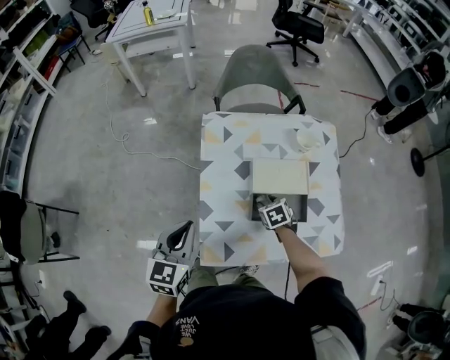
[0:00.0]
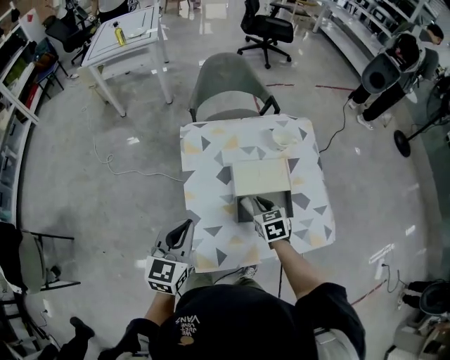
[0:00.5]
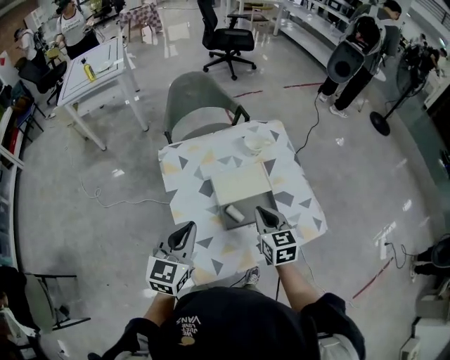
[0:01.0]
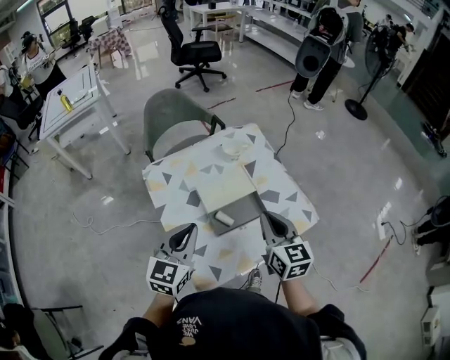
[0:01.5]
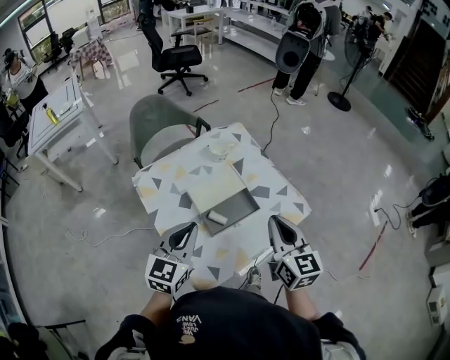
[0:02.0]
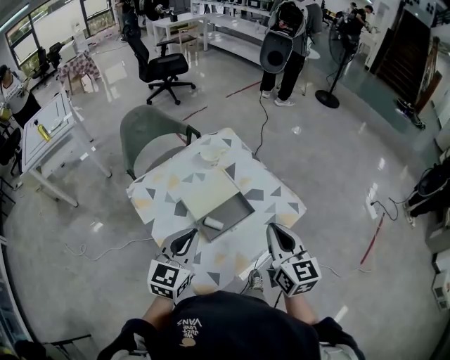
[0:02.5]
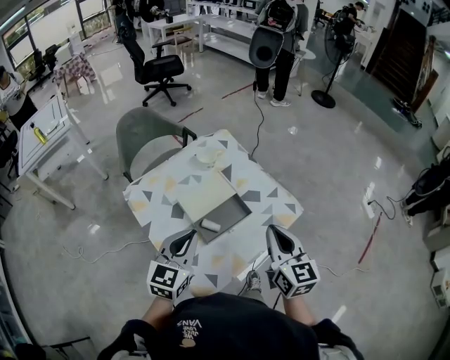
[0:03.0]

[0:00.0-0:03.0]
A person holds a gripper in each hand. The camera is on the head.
0.0 to 1.5 s: The right gripper heads upward, covering about 30 cm, tips its fingers upward by roughly 50 degrees, and closes; the left gripper moves approximately 15 cm, and rotates approximately 30 degrees.
1.5 to 3.0 s: The right gripper travels backward and to the right by approximately 10 cm.

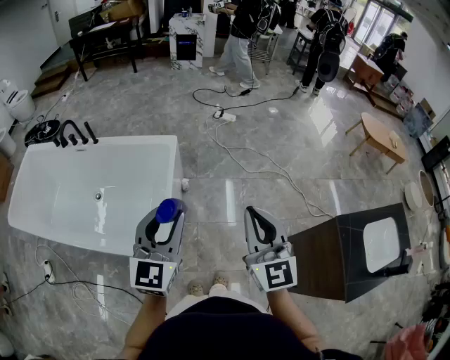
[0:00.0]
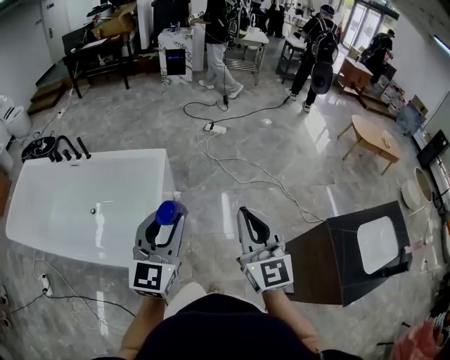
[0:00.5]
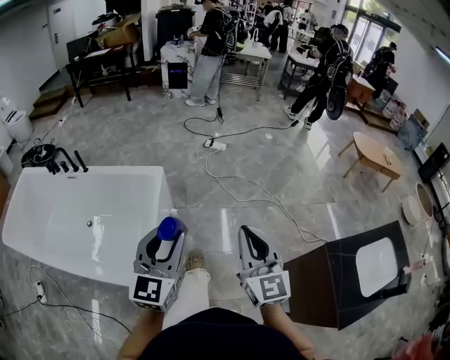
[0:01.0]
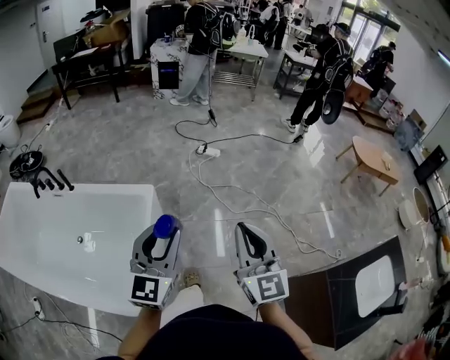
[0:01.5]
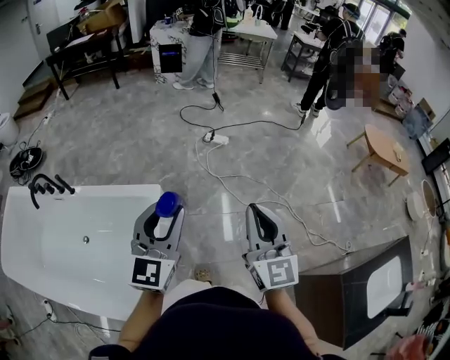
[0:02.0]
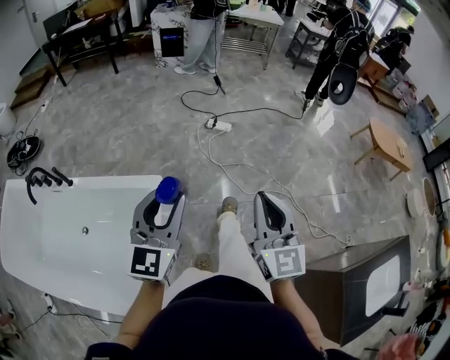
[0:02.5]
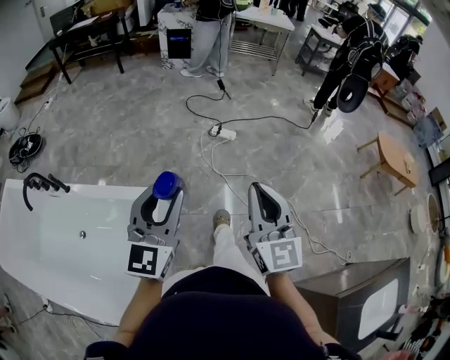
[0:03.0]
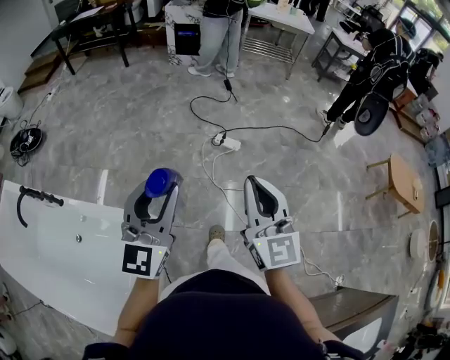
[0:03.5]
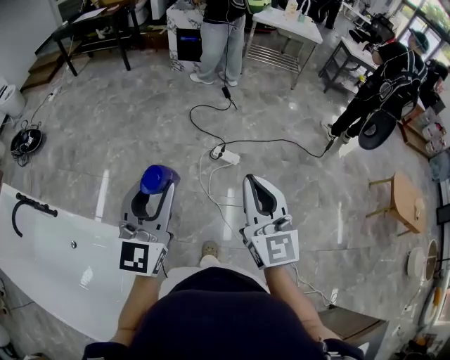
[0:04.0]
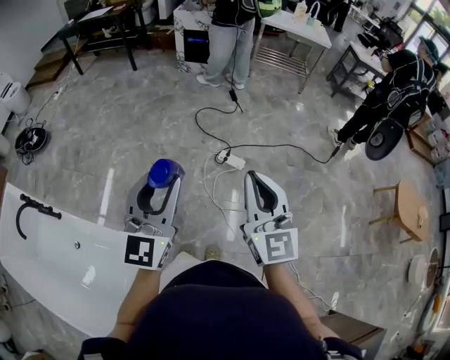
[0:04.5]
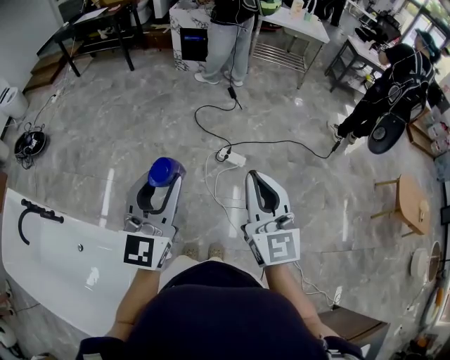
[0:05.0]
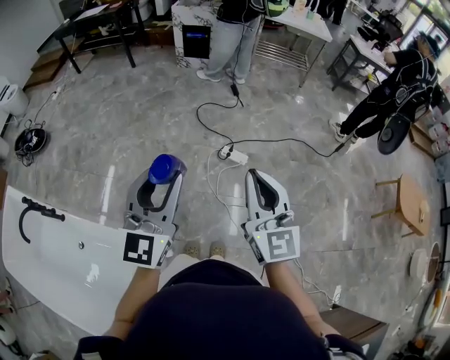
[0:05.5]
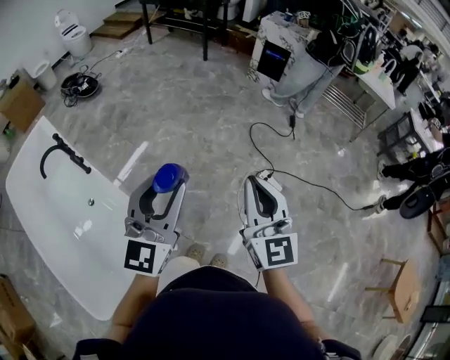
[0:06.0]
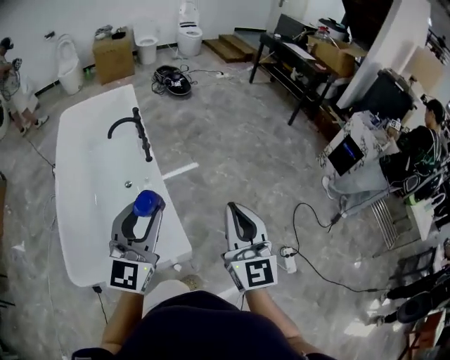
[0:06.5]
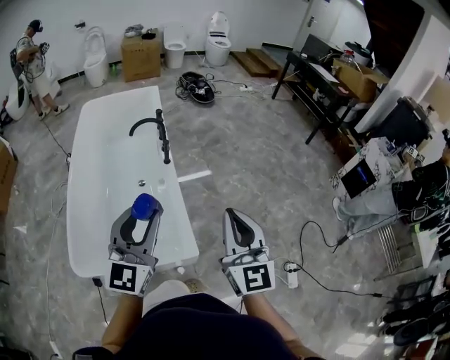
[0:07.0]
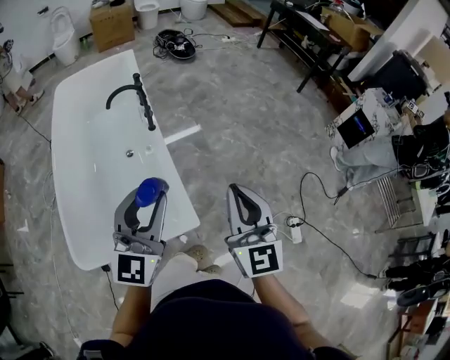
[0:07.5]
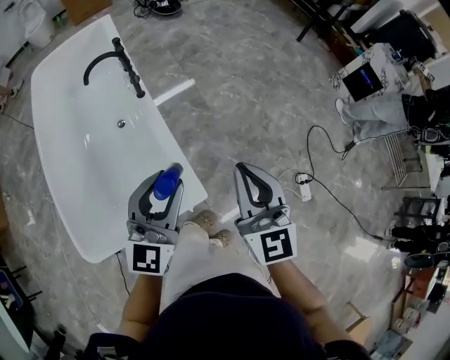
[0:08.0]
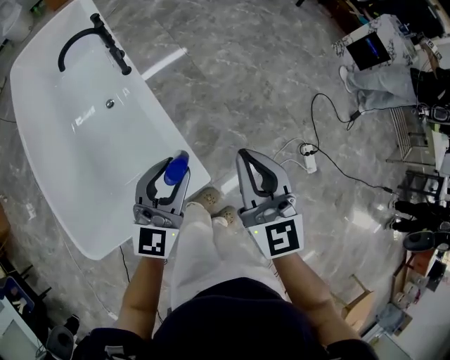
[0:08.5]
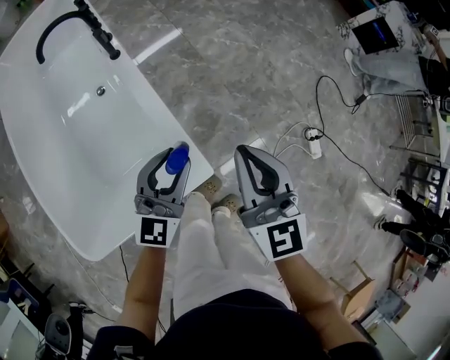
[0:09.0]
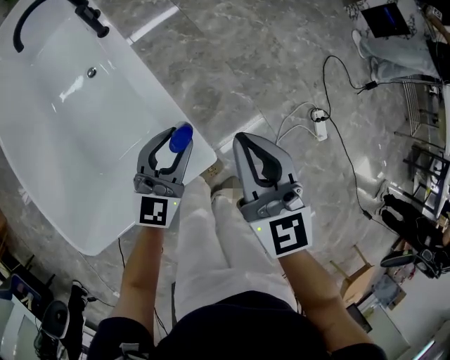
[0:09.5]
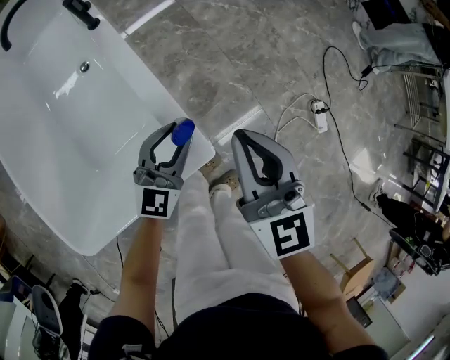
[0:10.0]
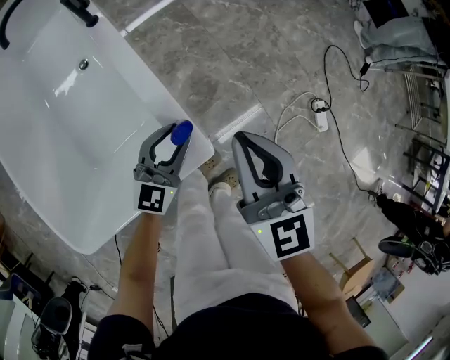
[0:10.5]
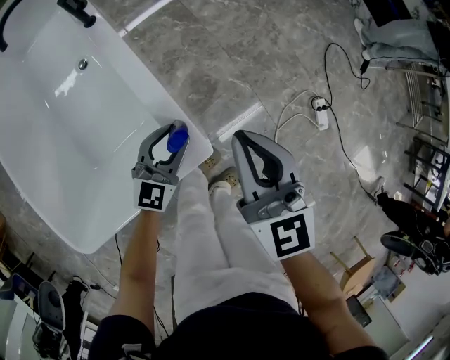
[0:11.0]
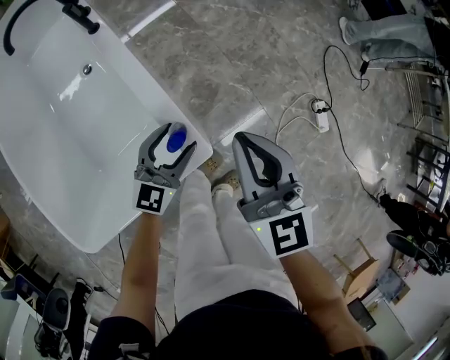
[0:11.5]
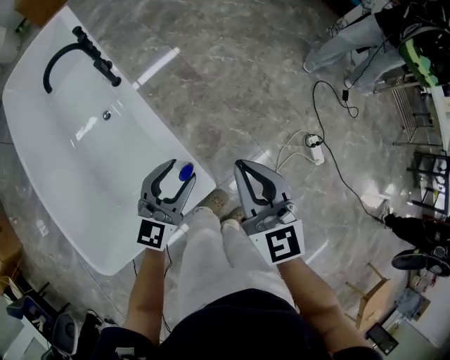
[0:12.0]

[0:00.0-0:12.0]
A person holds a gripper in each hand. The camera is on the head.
0.0 to 2.0 s: Both grippers move forward, approximately 35 cm.
2.0 to 4.0 s: The two grippers travel together, forward, roughly 50 cm.
4.0 to 6.0 s: The right gripper shifts approximately 20 cm to the left and forward, and rotates approximately 20 degrees. The left gripper heads to the left, covering roughly 15 cm.
6.0 to 8.0 s: The right gripper shifts by some 35 cm, and changes its angle by approximately 40 degrees. The left gripper changes place by some 30 cm, and turns by about 30 degrees.
8.0 to 10.0 s: The left gripper heads downward, covering approximately 35 cm, and swivels about 20 degrees. Meanwhile the right gripper moves downward, about 20 cm.
10.0 to 12.0 s: The right gripper is displaced upward by some 10 cm, while the left gripper heads upward, covering some 15 cm.

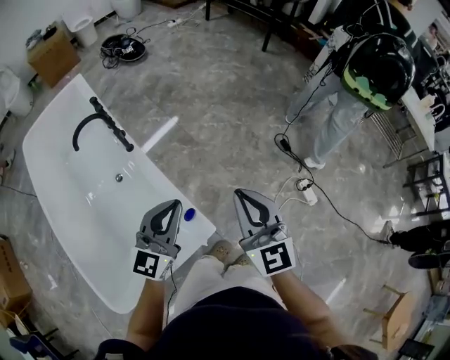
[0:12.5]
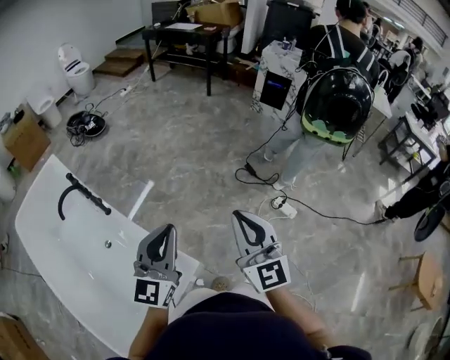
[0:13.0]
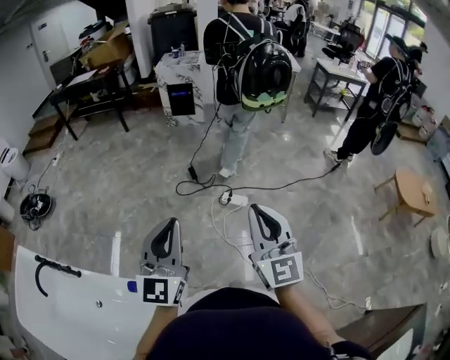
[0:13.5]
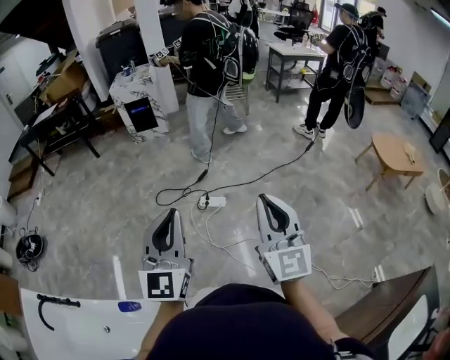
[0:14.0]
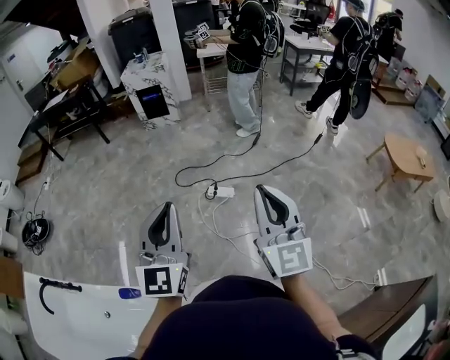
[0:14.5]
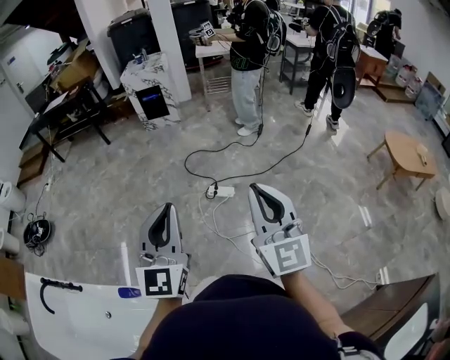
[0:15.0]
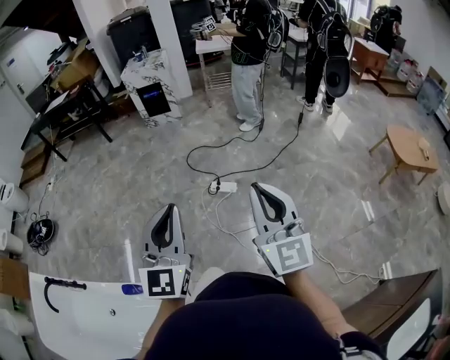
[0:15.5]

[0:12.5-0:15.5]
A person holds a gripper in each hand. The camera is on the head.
12.5 to 14.0 s: The two grippers travel together, roughly 50 cm. The left gripper rotates roughly 40 degrees; the right gripper changes its angle by roughly 70 degrees.
14.0 to 15.5 s: The grippers move only a little.

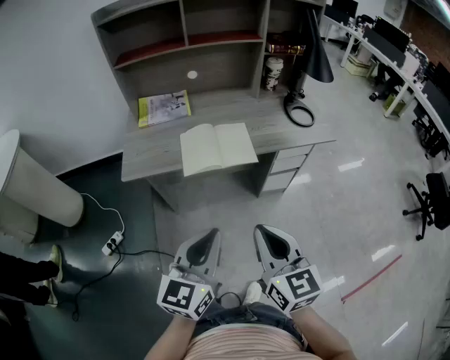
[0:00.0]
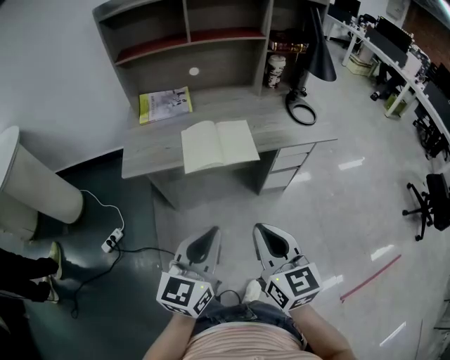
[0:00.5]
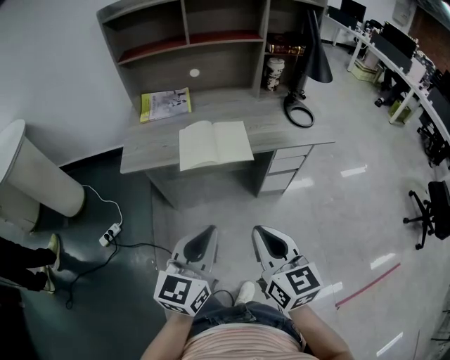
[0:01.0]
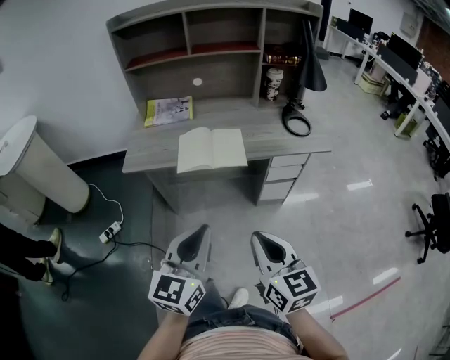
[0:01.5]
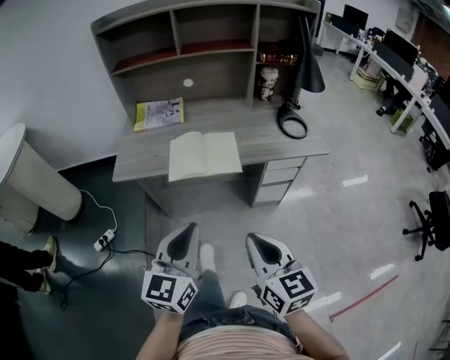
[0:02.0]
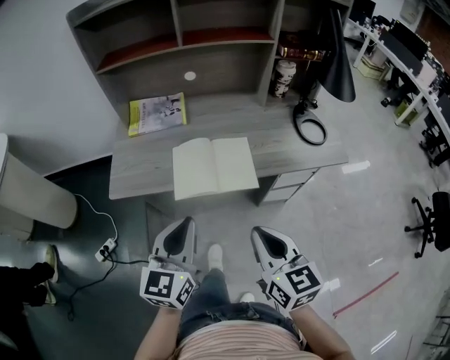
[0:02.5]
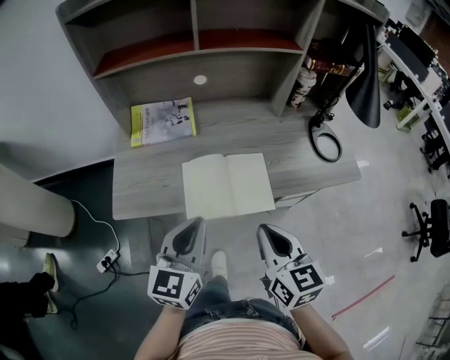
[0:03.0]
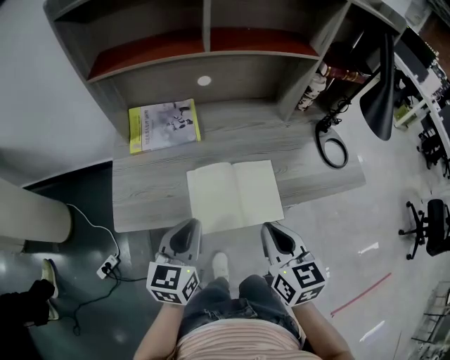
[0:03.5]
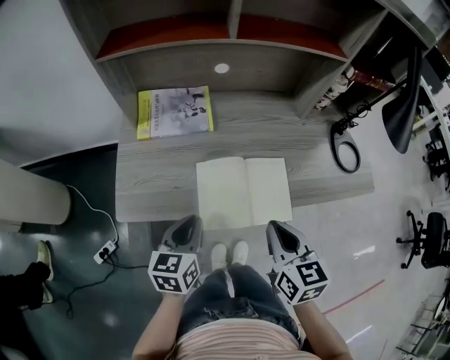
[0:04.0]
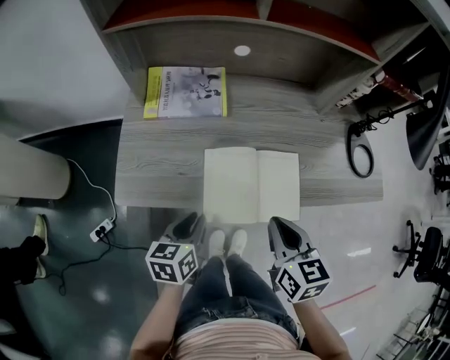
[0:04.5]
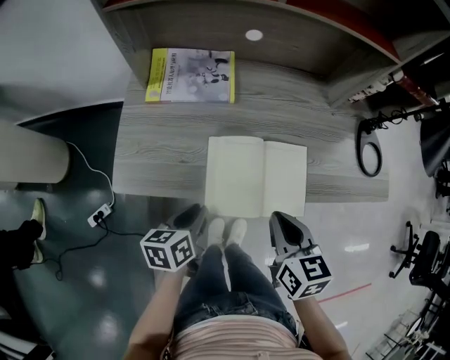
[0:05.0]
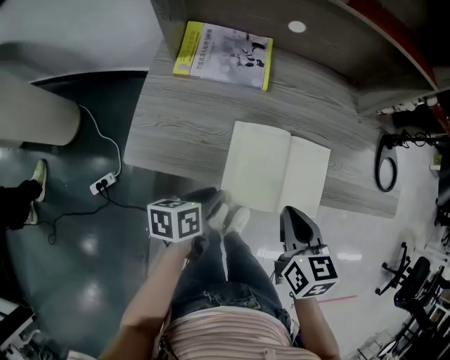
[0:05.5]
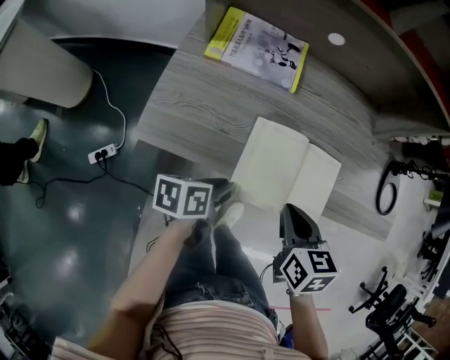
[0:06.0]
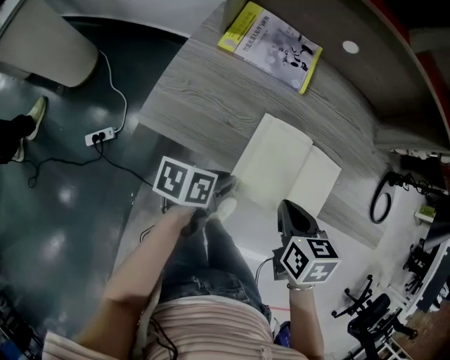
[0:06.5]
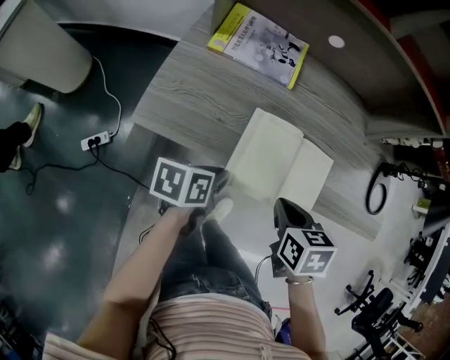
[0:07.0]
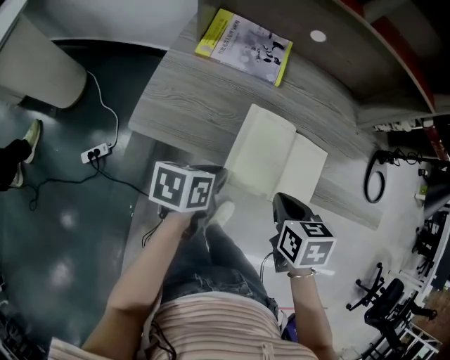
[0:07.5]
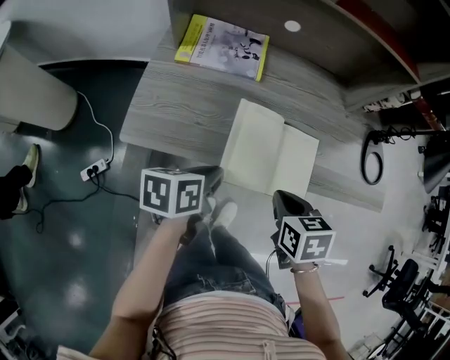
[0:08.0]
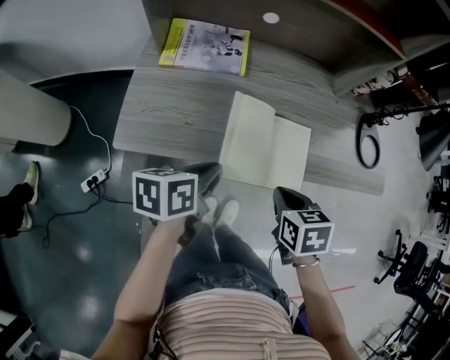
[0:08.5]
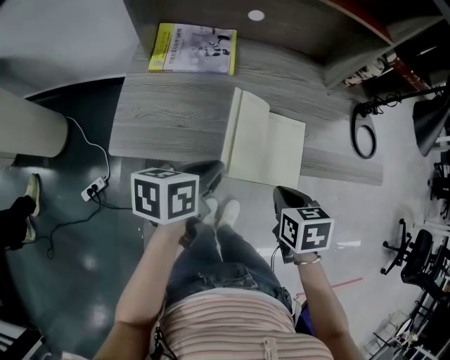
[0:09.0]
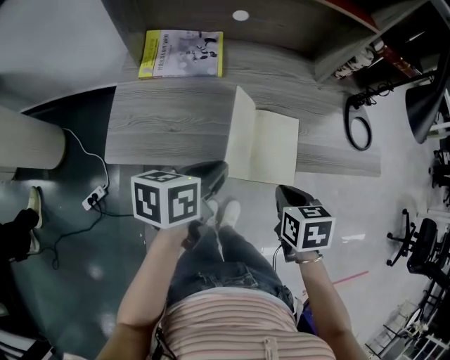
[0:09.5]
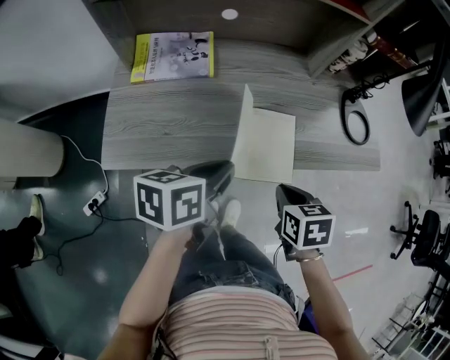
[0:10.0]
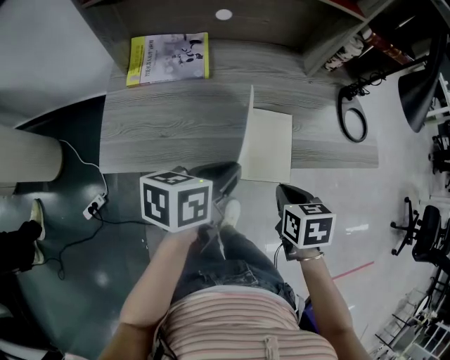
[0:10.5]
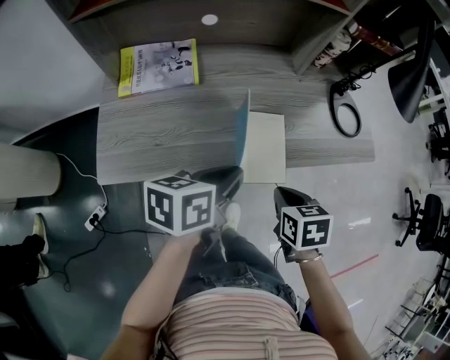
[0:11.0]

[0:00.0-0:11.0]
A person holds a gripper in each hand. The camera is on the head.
0.0 to 2.0 s: The right gripper travels to the right by roughly 5 cm.
2.0 to 3.5 s: The left gripper is displaced forward and to the left by about 30 cm. The right gripper heads forward, covering some 25 cm.
3.5 to 5.5 s: The left gripper goes some 15 cm downward, and rotates around the line of its fingers by roughly 40 degrees, counterclockwise from behind, while the right gripper moves downward, some 5 cm.
5.5 to 7.5 s: The right gripper turns by some 20 degrees.
7.5 to 9.0 s: The left gripper heads upward, covering some 5 cm; the right gripper shifts approximately 5 cm to the right.
9.0 to 11.0 s: The left gripper shifts some 10 cm to the right.
